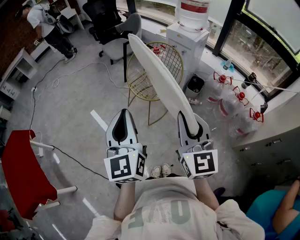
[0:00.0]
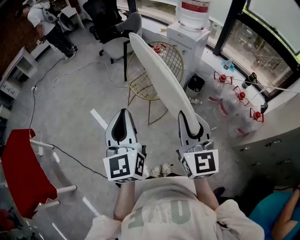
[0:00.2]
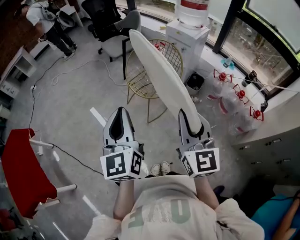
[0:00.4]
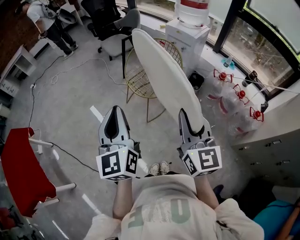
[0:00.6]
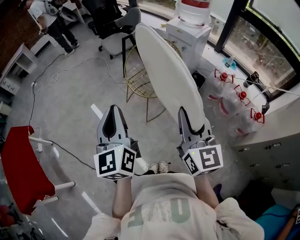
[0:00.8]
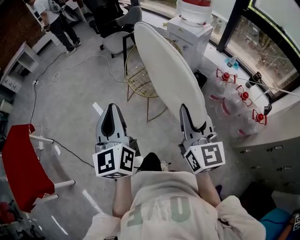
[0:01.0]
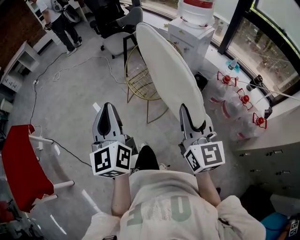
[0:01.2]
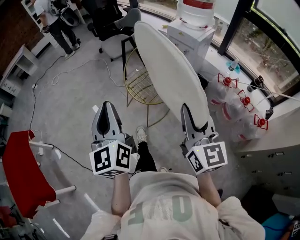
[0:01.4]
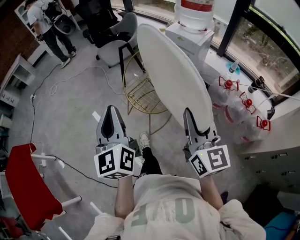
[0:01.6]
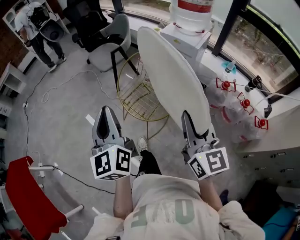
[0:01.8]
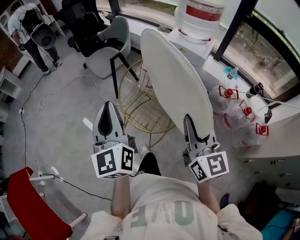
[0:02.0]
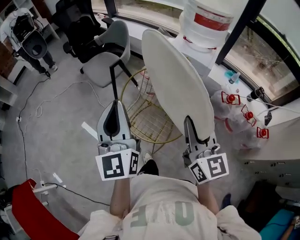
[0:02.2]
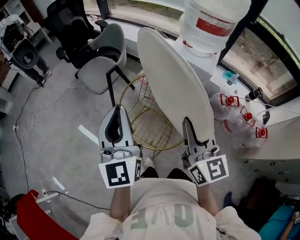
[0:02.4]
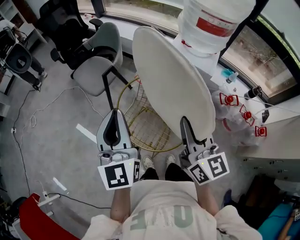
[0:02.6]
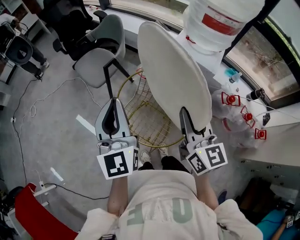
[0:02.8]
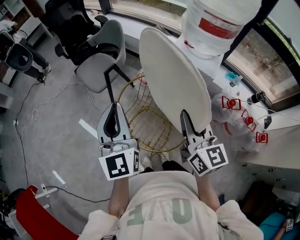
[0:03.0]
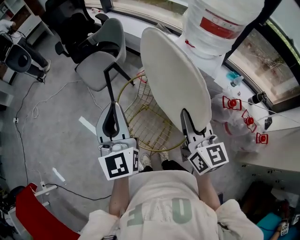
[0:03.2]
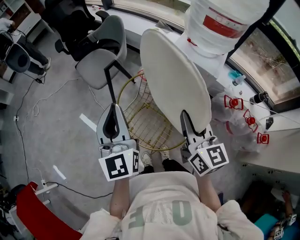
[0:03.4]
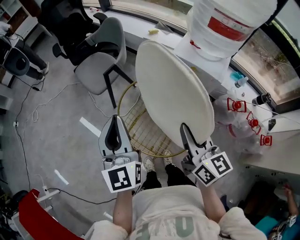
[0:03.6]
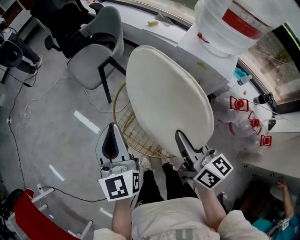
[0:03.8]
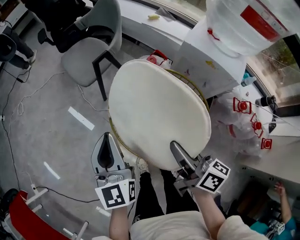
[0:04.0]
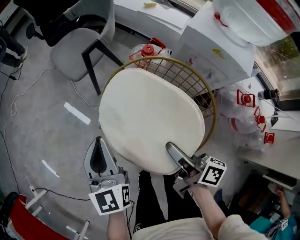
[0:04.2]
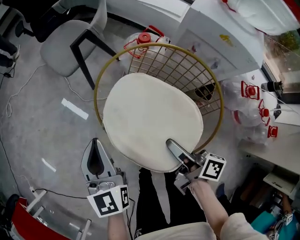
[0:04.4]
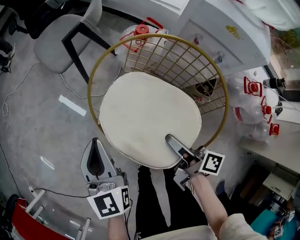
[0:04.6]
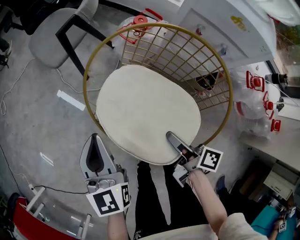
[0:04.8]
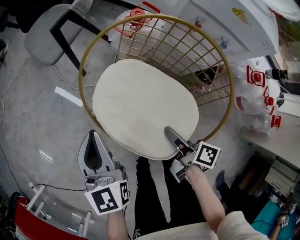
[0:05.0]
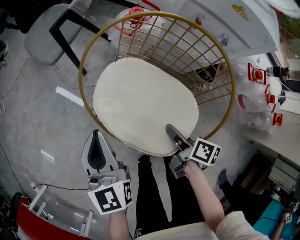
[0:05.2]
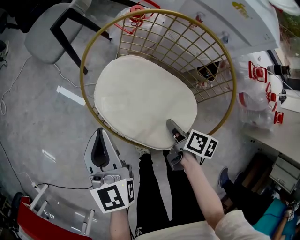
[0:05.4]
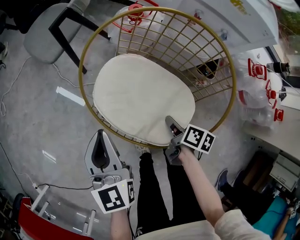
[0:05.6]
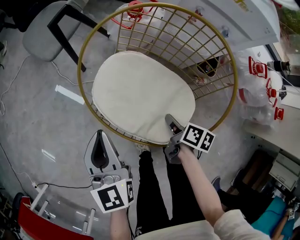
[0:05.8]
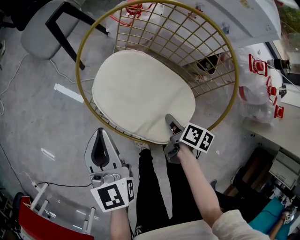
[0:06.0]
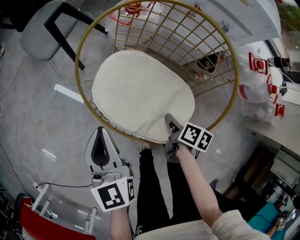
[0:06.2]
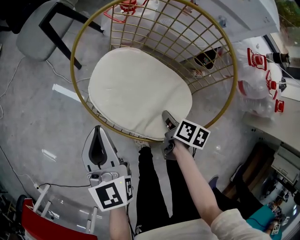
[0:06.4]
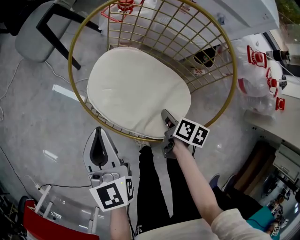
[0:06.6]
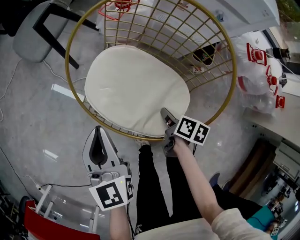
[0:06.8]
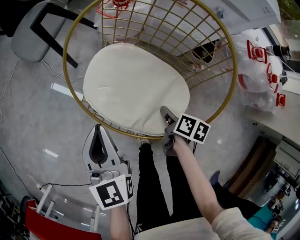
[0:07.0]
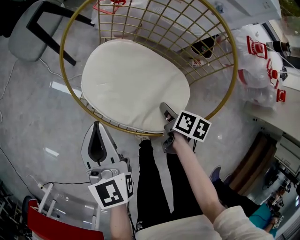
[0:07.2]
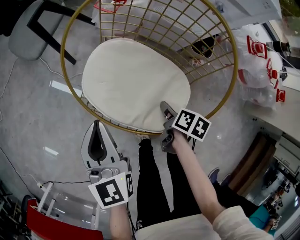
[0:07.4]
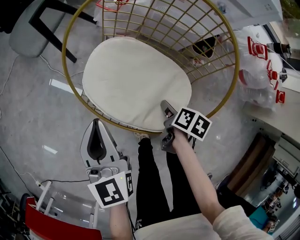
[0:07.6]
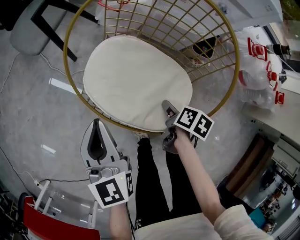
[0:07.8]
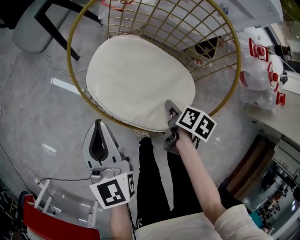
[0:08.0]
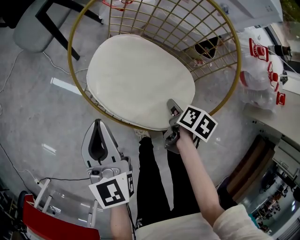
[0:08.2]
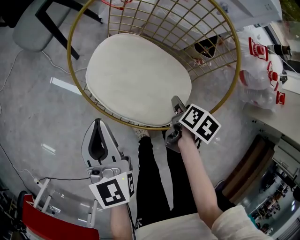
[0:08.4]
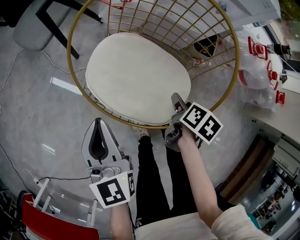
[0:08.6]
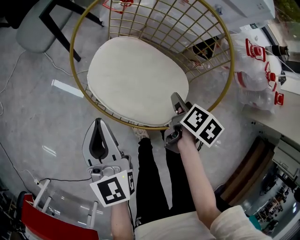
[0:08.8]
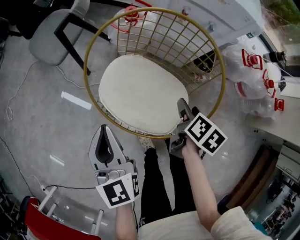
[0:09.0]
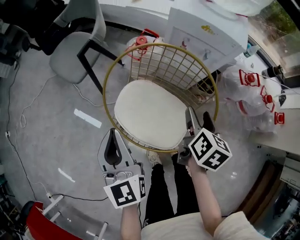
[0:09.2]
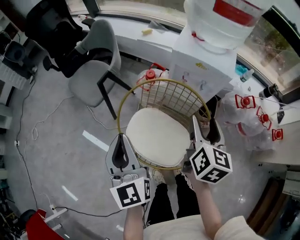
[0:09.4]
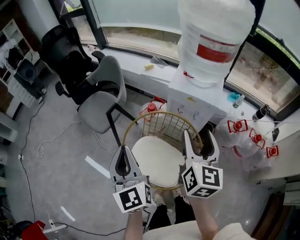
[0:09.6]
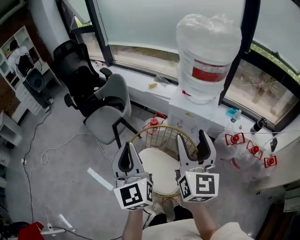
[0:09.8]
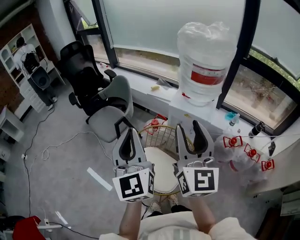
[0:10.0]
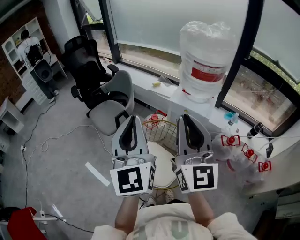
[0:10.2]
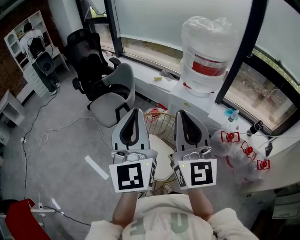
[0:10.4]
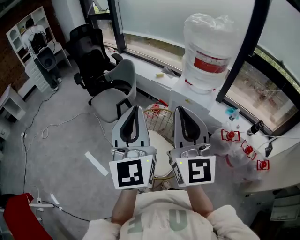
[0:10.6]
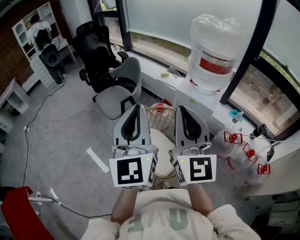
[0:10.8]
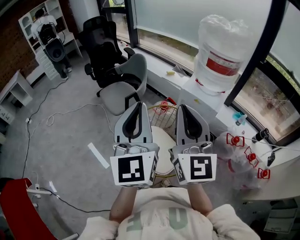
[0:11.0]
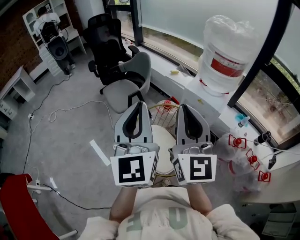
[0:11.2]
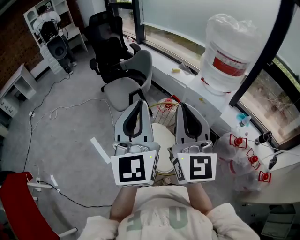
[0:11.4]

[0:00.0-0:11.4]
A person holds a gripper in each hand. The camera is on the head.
0:00.0 to 0:01.4: The right gripper is displaced forward and to the right by approximately 10 cm; the left gripper shifts some 10 cm forward.
0:01.4 to 0:02.8: The grippers both shift forward by about 40 cm. The left gripper turns by some 20 degrees.
0:02.8 to 0:04.2: Both grippers move downward, some 25 cm. The right gripper rotates around the line of its fingers by some 60 degrees, clockwise from behind; the left gripper rotates about 20 degrees.
0:04.2 to 0:05.6: The left gripper shifts about 15 cm downward, while the right gripper shifts approximately 25 cm downward, and tips its fingers downward by about 40 degrees.
0:05.6 to 0:07.2: The grippers move only a little.
0:07.2 to 0:08.6: The right gripper moves approximately 5 cm, and opens up.
0:08.6 to 0:10.0: Both grippers move upward, approximately 60 cm. The left gripper tips its fingers upward by some 30 degrees; the right gripper tilts its fingers about 80 degrees upward.
0:10.0 to 0:11.4: The right gripper shifts some 5 cm to the left, and closes its fingers; the left gripper is displaced backward by some 5 cm.

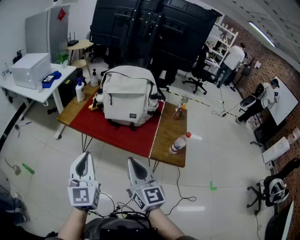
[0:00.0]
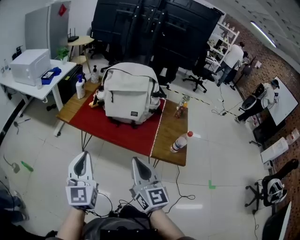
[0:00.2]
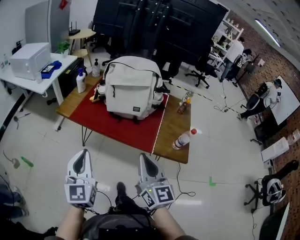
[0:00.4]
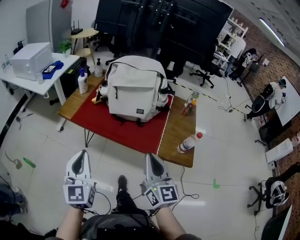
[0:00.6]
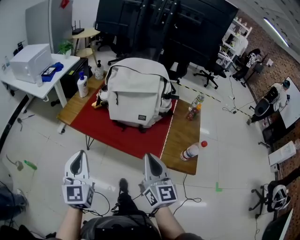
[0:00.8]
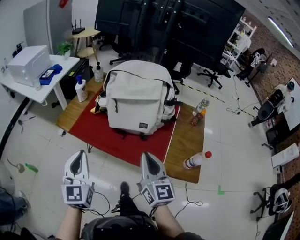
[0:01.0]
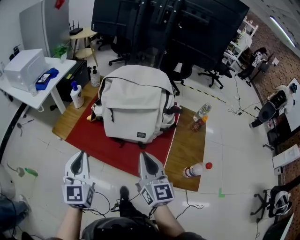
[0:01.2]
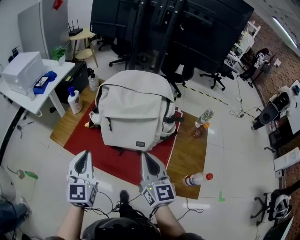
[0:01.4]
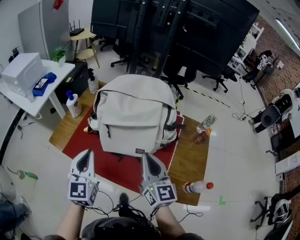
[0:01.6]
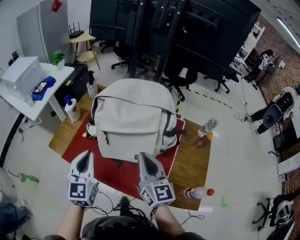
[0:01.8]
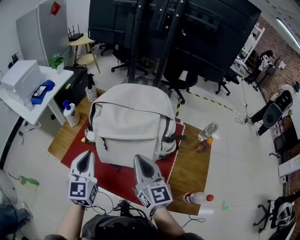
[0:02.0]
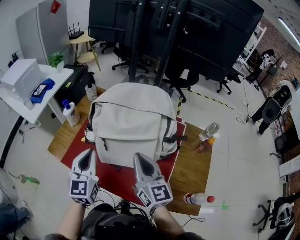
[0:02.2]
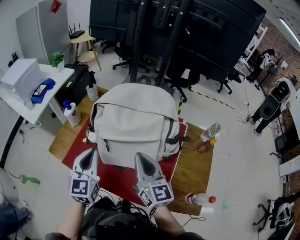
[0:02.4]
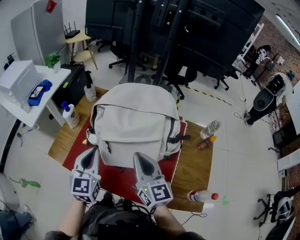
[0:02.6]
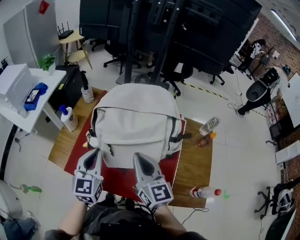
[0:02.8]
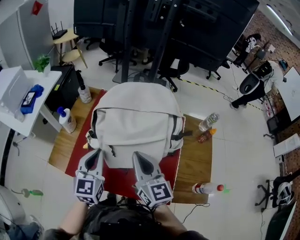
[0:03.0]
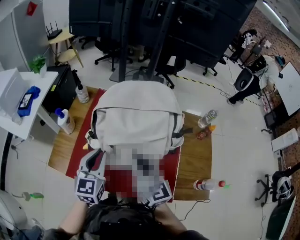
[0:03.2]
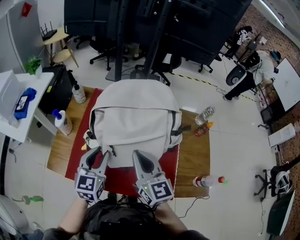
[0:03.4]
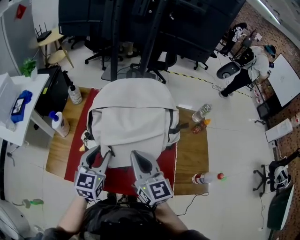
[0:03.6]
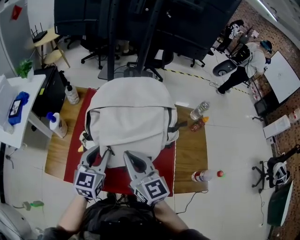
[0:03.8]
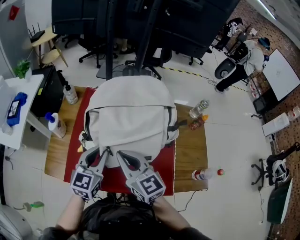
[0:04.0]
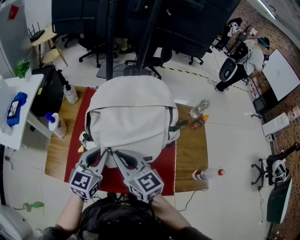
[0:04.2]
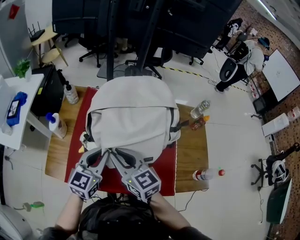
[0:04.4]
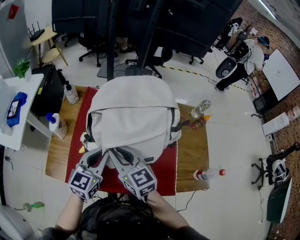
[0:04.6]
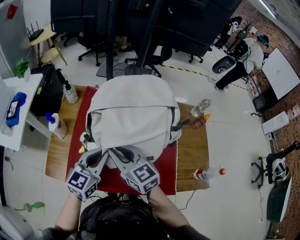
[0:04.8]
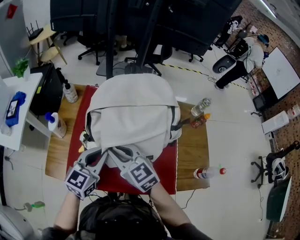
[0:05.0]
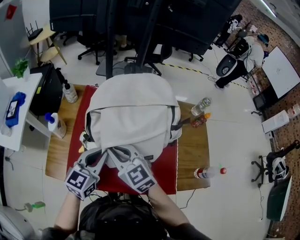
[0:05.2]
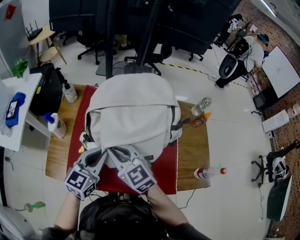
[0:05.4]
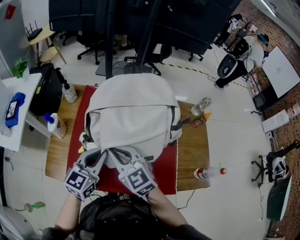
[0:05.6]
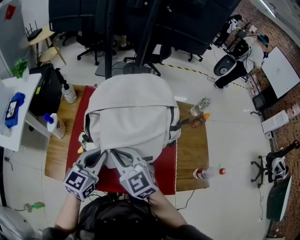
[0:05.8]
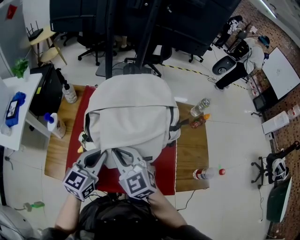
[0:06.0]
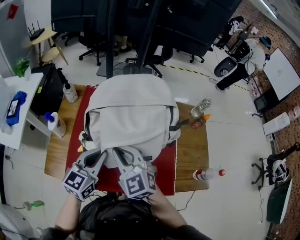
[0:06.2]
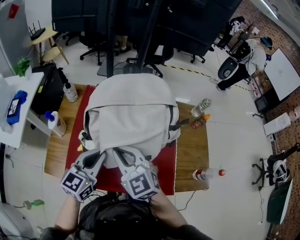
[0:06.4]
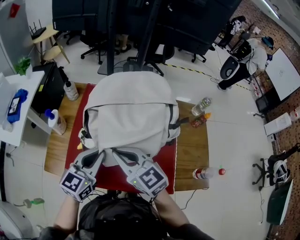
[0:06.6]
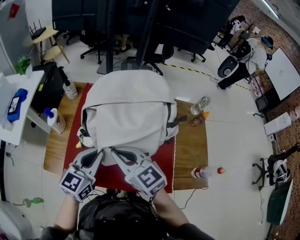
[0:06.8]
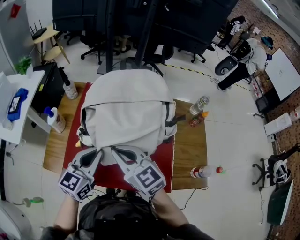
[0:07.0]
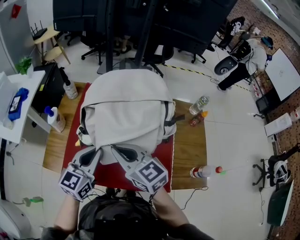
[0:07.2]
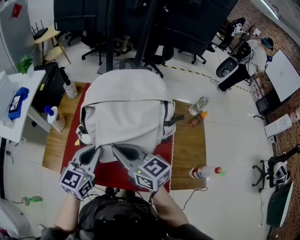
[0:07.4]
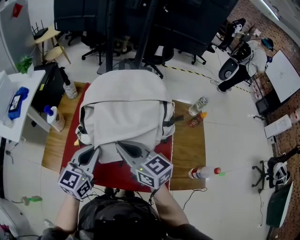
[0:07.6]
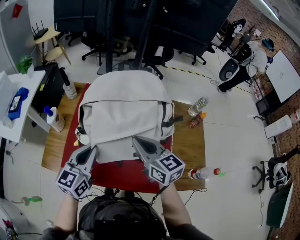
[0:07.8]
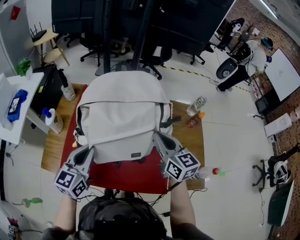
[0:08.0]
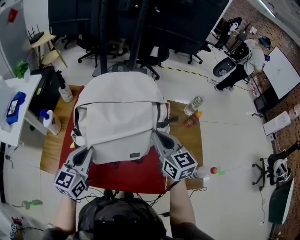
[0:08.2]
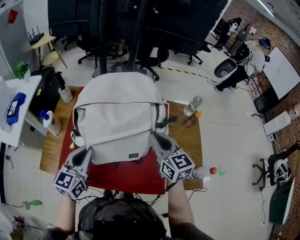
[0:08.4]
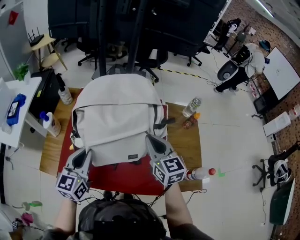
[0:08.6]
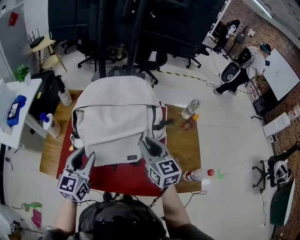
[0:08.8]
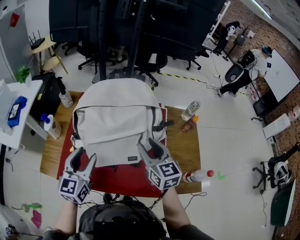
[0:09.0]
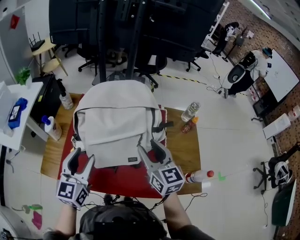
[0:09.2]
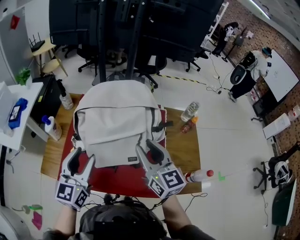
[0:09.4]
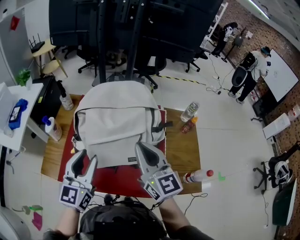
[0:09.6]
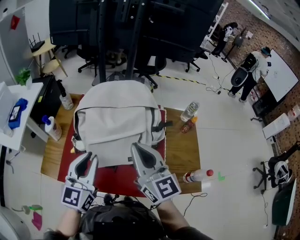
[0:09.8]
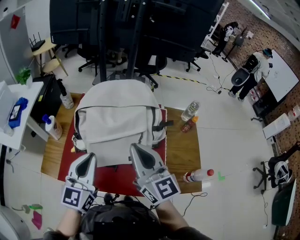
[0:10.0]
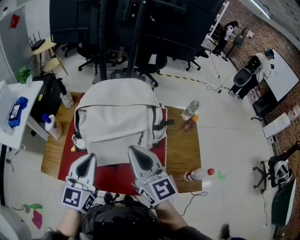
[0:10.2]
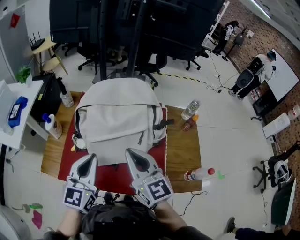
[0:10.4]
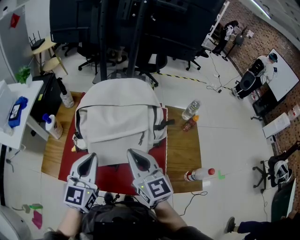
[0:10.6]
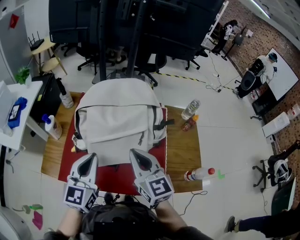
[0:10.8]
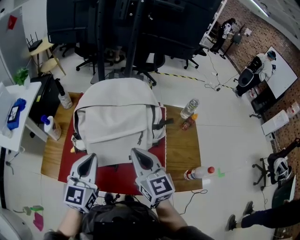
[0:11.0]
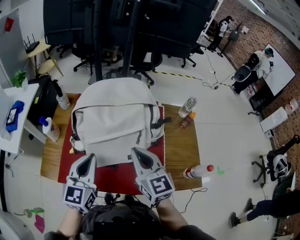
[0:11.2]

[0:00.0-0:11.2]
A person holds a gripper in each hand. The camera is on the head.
0:00.0 to 0:01.6: Both grippers travel together forward, roughly 40 cm.
0:01.6 to 0:03.2: The left gripper goes some 15 cm forward; the right gripper heads forward and to the left, covering some 15 cm.
0:03.2 to 0:04.8: The right gripper heads to the left, covering roughly 10 cm. The left gripper changes its angle by some 30 degrees, and opens and closes again.
0:04.8 to 0:06.4: The right gripper turns by roughly 20 degrees.
0:06.4 to 0:08.0: The right gripper goes about 20 cm to the right, and swivels about 30 degrees.
0:08.0 to 0:09.6: The right gripper goes some 10 cm upward and backward, and opens, then closes once more. Meanwhile the left gripper travels upward by roughly 5 cm, and opens its fingers.
0:09.6 to 0:11.2: The right gripper travels downward by about 5 cm. The left gripper closes its fingers.

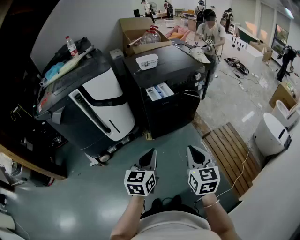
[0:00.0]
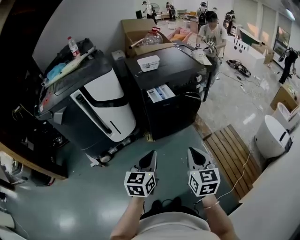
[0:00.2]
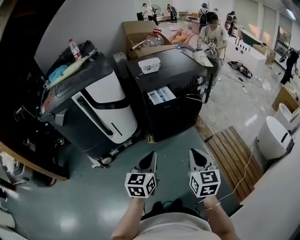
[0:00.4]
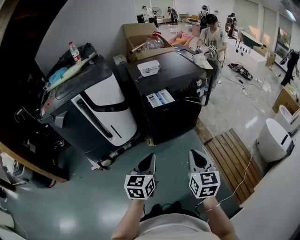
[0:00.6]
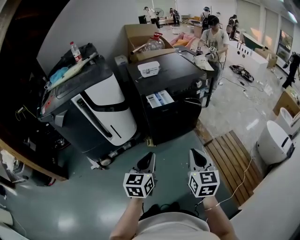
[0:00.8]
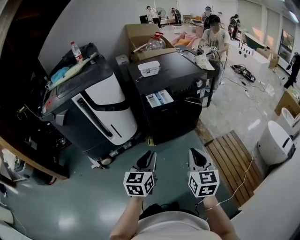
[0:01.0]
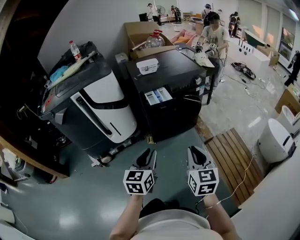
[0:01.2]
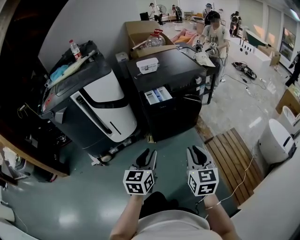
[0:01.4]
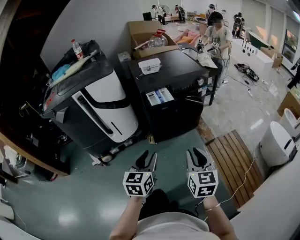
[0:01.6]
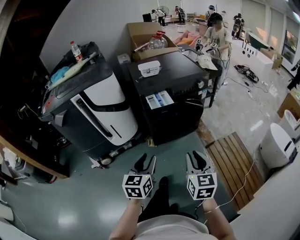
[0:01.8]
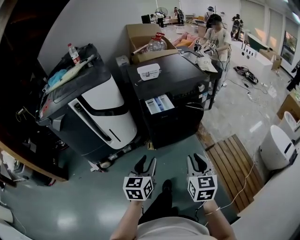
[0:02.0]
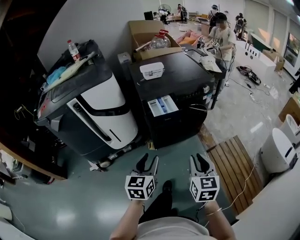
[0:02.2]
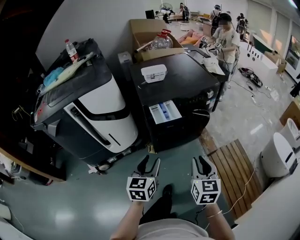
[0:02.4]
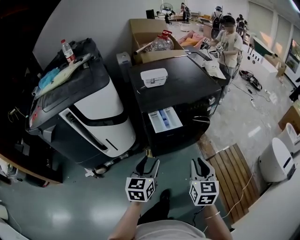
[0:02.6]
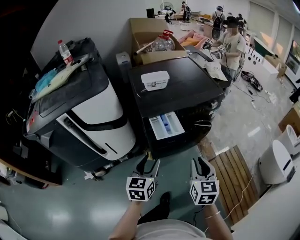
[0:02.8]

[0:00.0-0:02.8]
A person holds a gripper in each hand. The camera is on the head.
0:00.0 to 0:01.4: The left gripper opens up. The right gripper is displaced to the right by roughly 5 cm.
0:01.4 to 0:02.8: The grippers both shift forward by roughly 25 cm. The left gripper opens its fingers.
